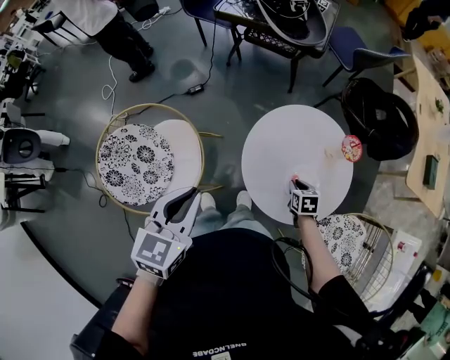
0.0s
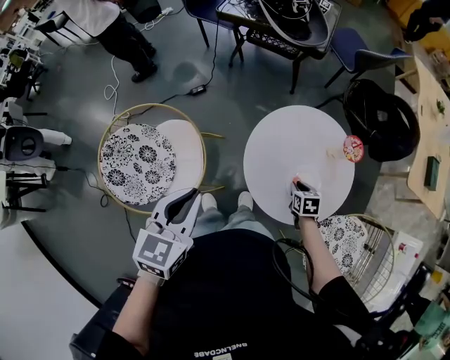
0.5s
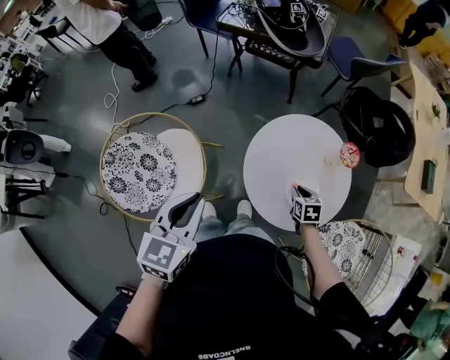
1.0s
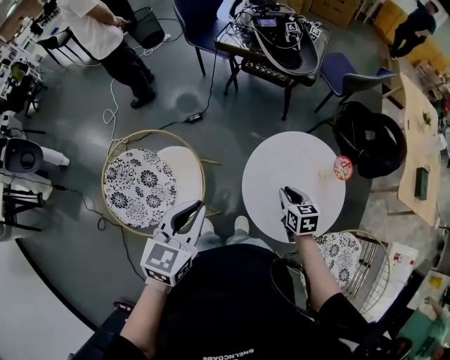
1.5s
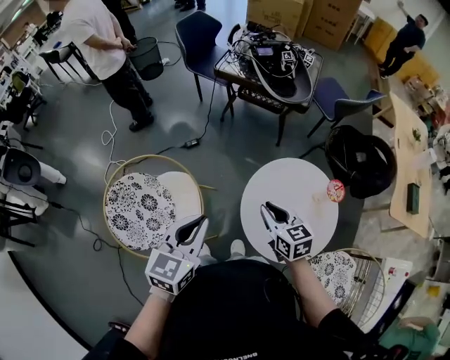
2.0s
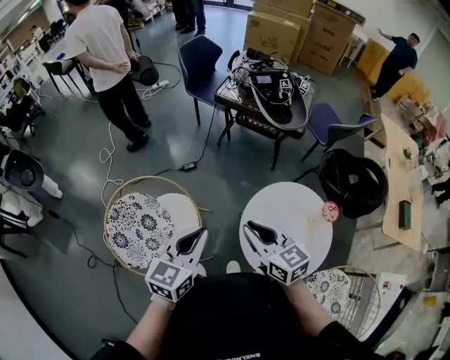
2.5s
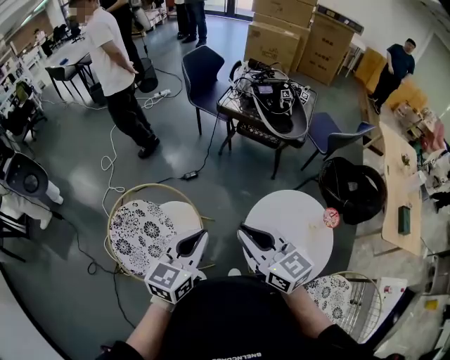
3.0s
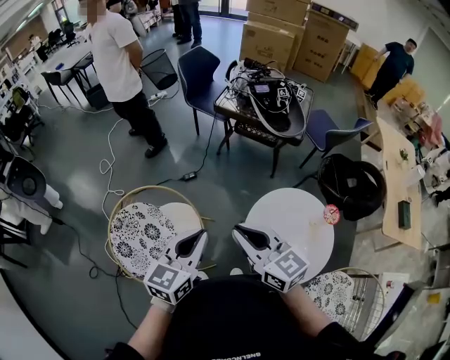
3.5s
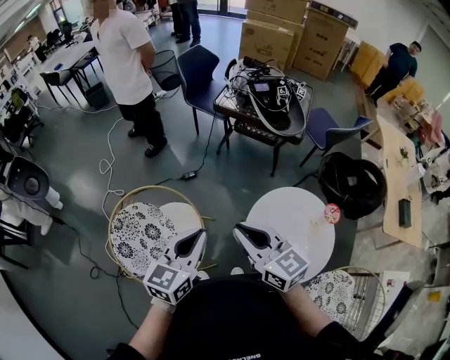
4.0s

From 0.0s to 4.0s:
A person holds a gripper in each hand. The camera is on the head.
From 0.0s to 2.0s: The right gripper travels upward and to the left by roughly 30 cm, and tilts its fingers some 30 degrees upward. Meanwhile the left gripper shifts by about 5 cm.
From 2.0s to 4.0s: The right gripper heads upward and to the left, covering roughly 20 cm, and swivels roughly 30 degrees, while the left gripper moves roughly 5 cm.

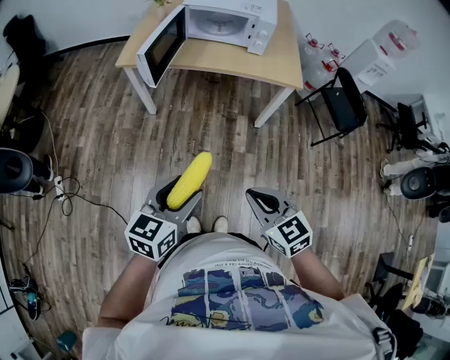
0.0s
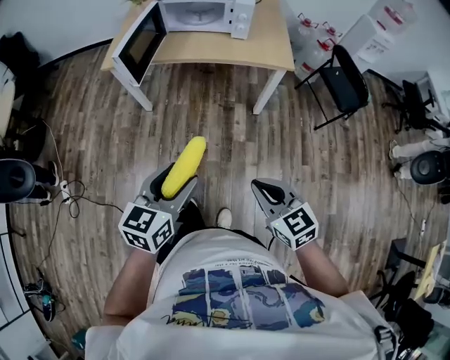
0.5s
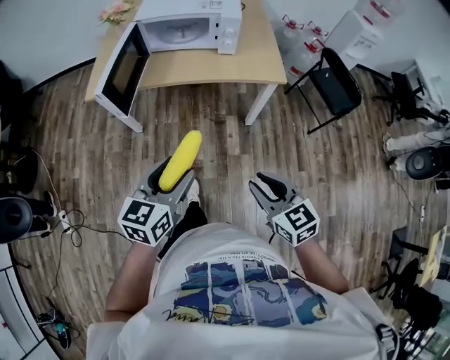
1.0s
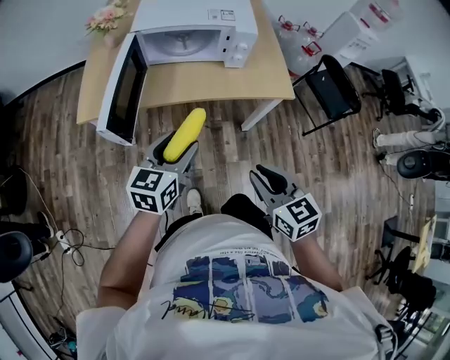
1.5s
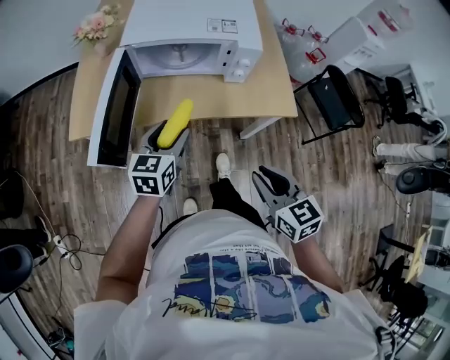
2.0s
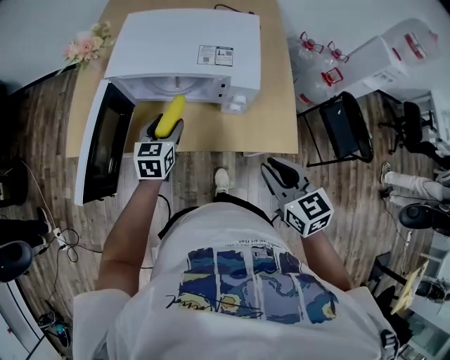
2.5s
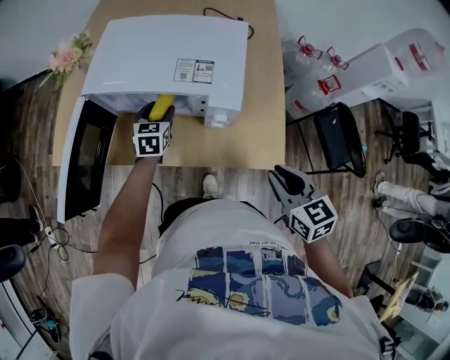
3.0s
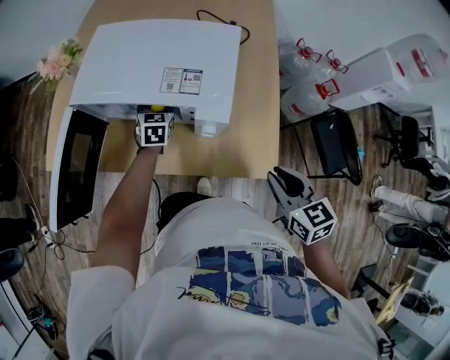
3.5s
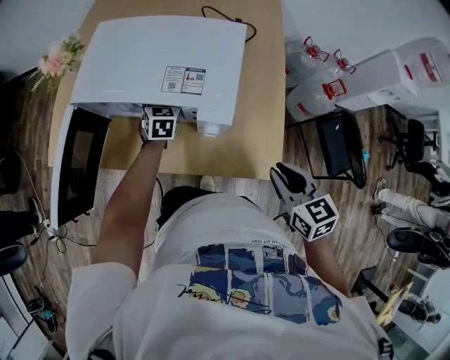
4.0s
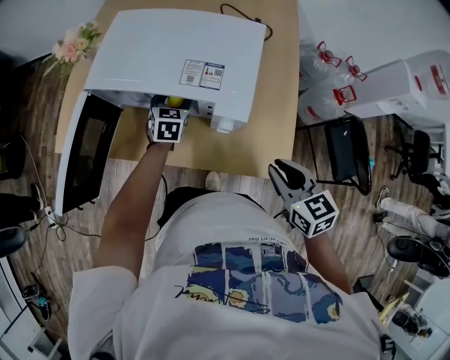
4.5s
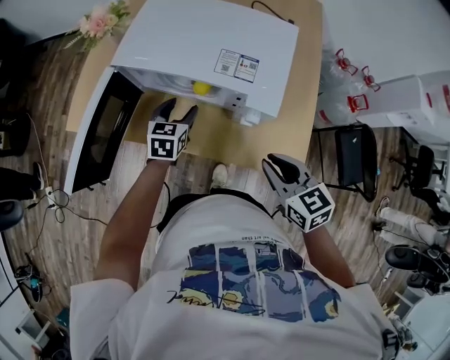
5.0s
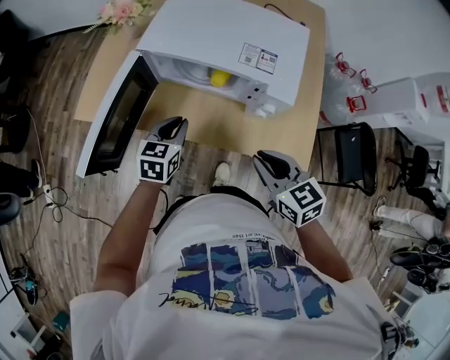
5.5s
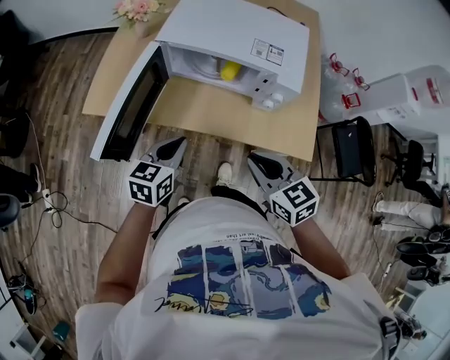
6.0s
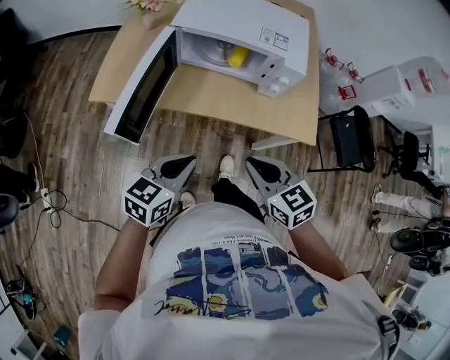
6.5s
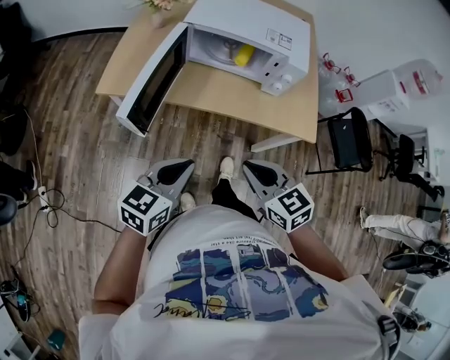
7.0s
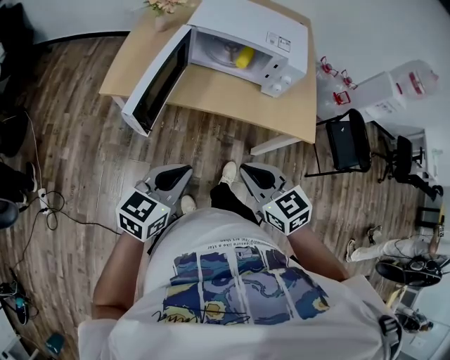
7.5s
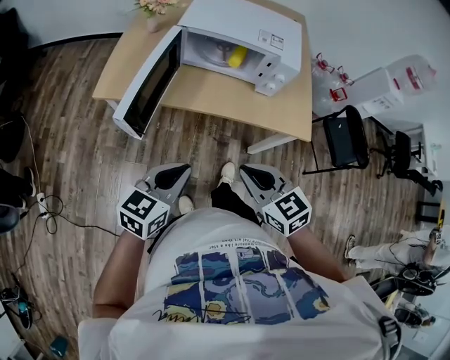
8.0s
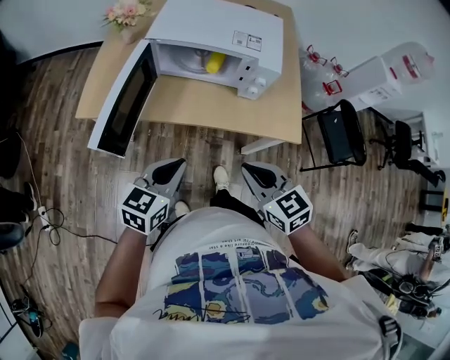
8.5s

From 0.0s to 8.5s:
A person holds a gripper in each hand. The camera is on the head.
From 0.0s to 2.0s: The two grippers go approximately 40 cm forward. The right gripper rotates roughly 20 degrees.
From 2.0s to 4.0s: The left gripper heads forward and to the right, covering some 35 cm, and swivels roughly 30 degrees; the right gripper shifts approximately 35 cm to the right and forward.
From 4.0s to 6.5s: The right gripper shifts some 35 cm to the left and backward, while the left gripper moves backward and to the left, roughly 50 cm, swivels about 40 degrees, and closes.
From 6.5s to 8.5s: The left gripper reaches about 10 cm backward, then returns.

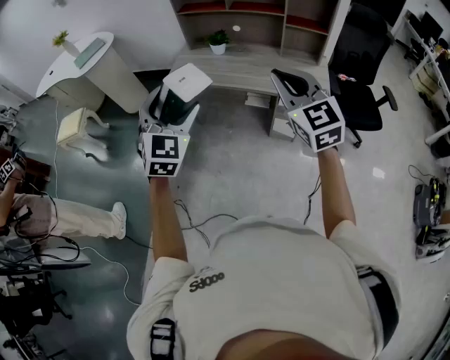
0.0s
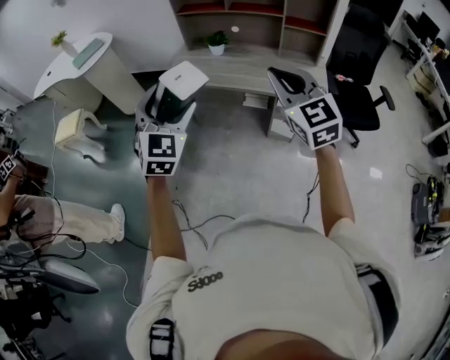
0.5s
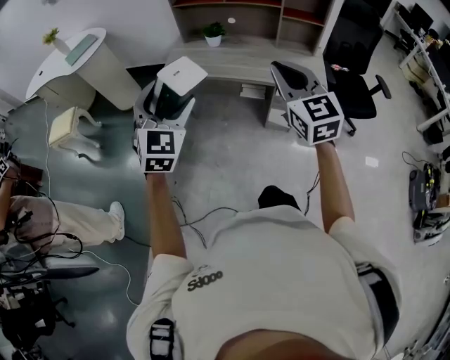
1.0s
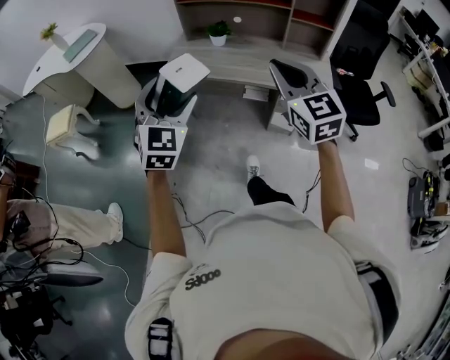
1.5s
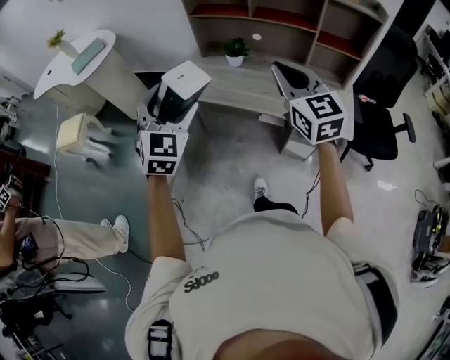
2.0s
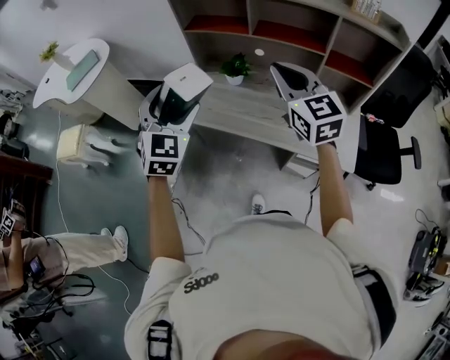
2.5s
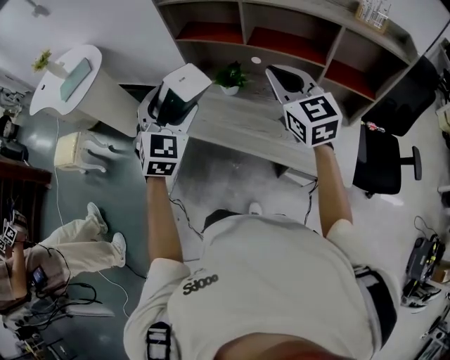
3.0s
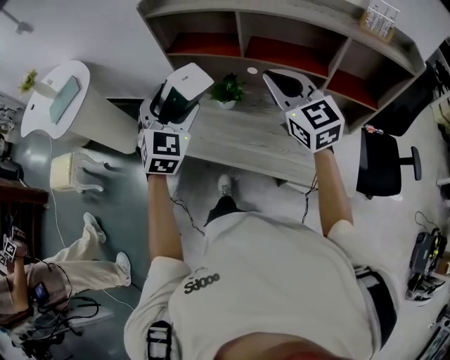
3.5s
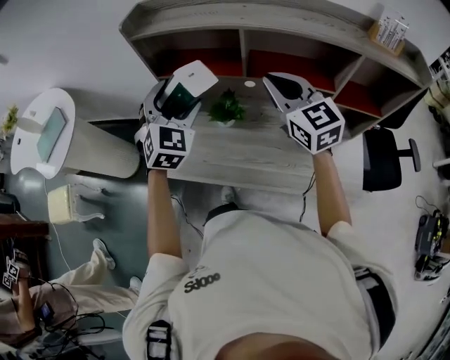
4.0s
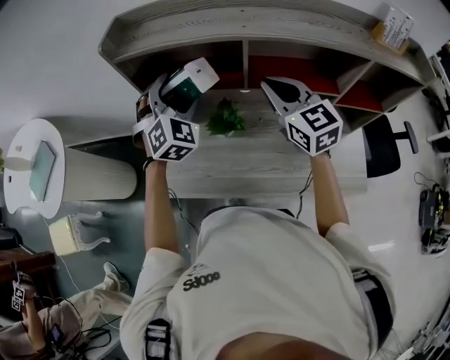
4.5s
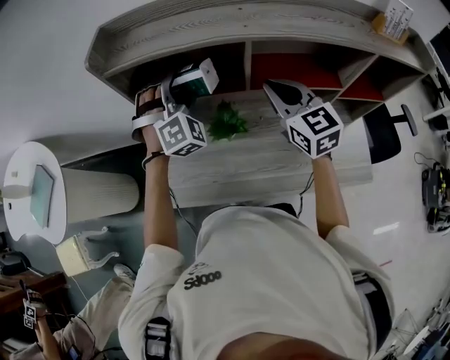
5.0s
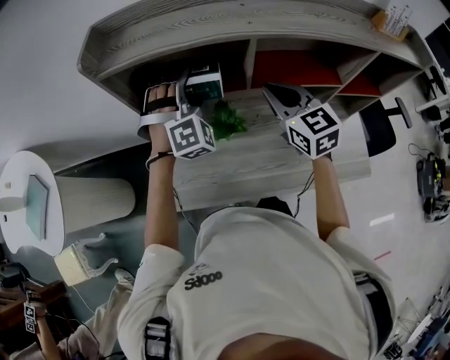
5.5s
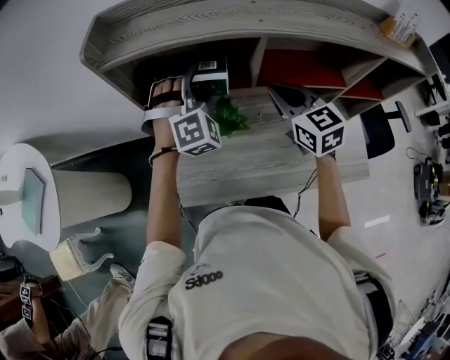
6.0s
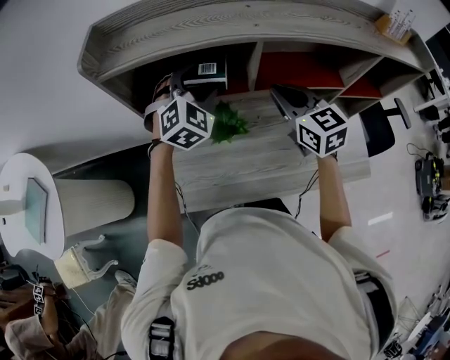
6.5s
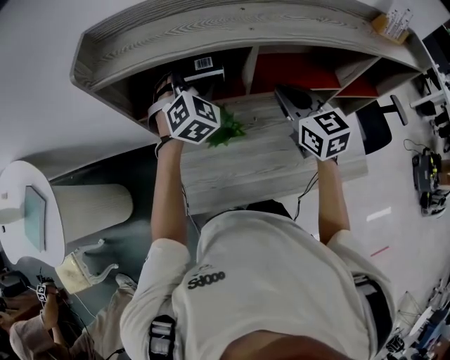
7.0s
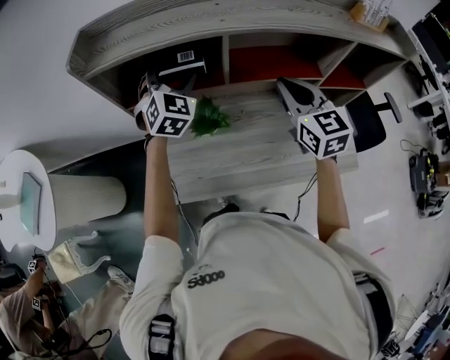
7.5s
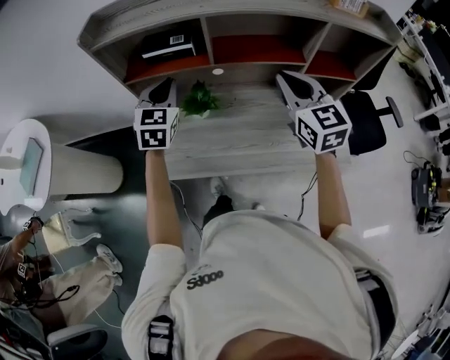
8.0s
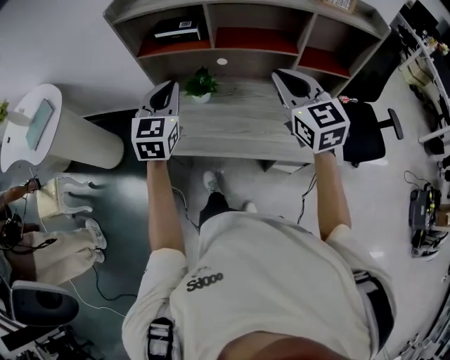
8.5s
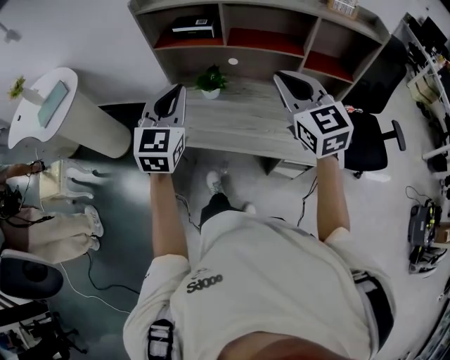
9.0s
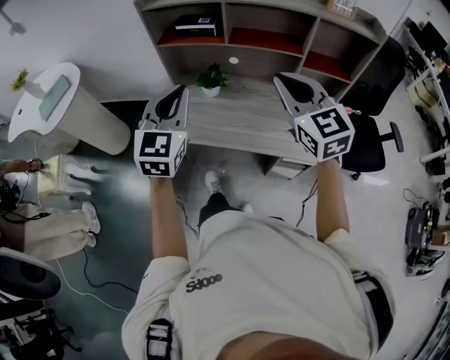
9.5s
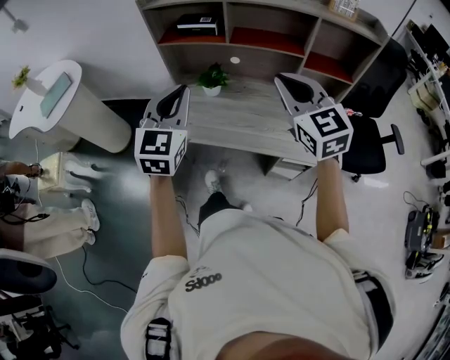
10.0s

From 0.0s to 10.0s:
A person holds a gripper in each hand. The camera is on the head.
From 0.0s to 2.0s: The grippers both shift forward by roughly 25 cm.
From 2.0s to 4.0s: Both grippers are carried forward, approximately 40 cm.
From 4.0s to 6.0s: The two grippers go some 15 cm forward and downward. The right gripper changes its angle by approximately 20 degrees. Meanwhile the left gripper changes its angle by some 40 degrees.
From 6.0s to 8.0s: The right gripper travels backward, to the right and upward by roughly 20 cm, while the left gripper shifts about 10 cm backward, rotates around the line of its fingers by approximately 60 degrees, counterclockwise from behind, and closes up.
From 8.0s to 10.0s: The left gripper heads backward, covering approximately 30 cm, while the right gripper travels backward by approximately 20 cm.

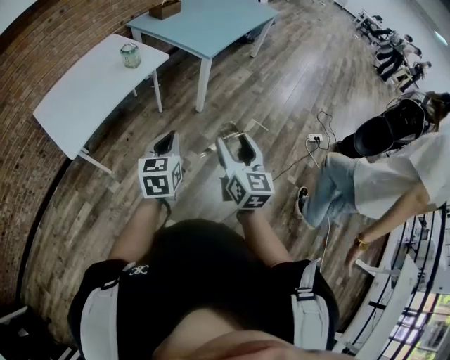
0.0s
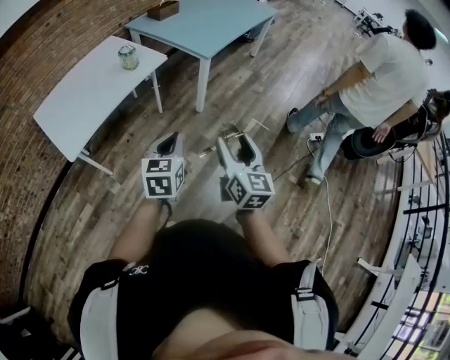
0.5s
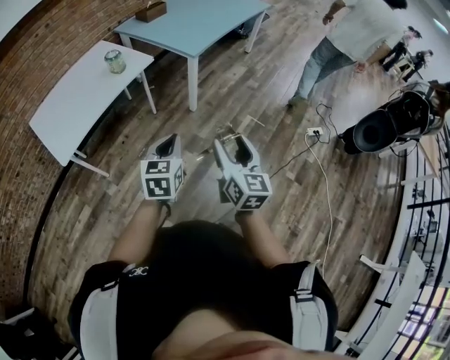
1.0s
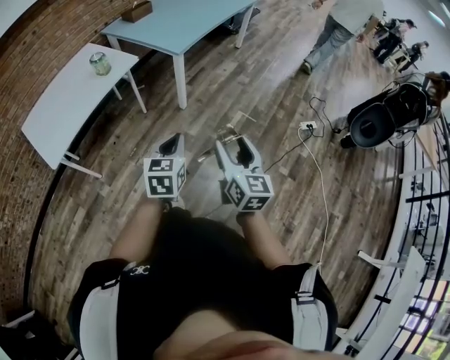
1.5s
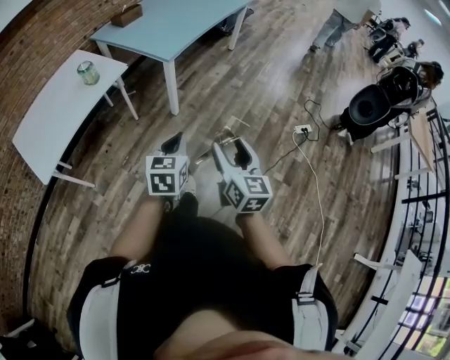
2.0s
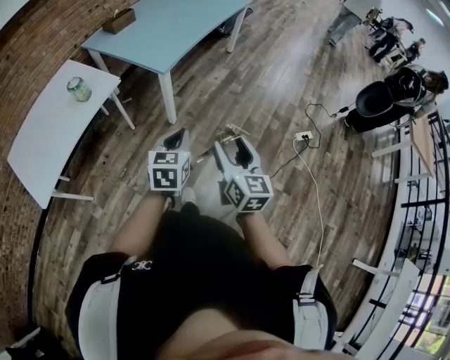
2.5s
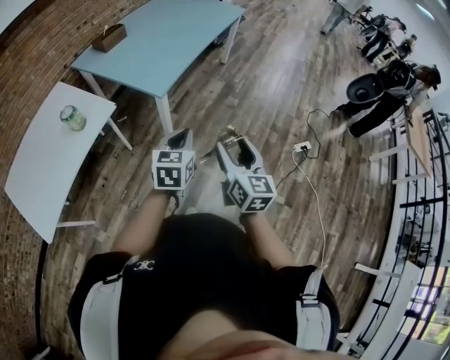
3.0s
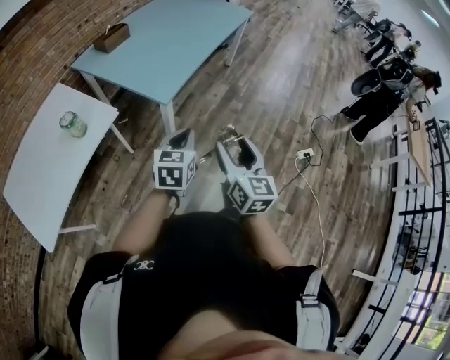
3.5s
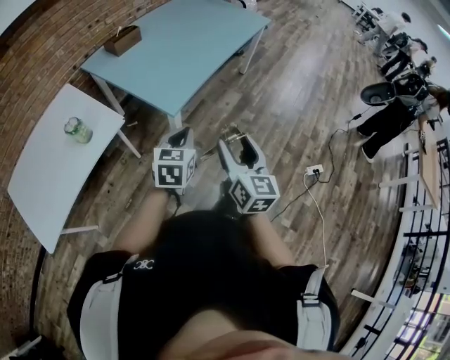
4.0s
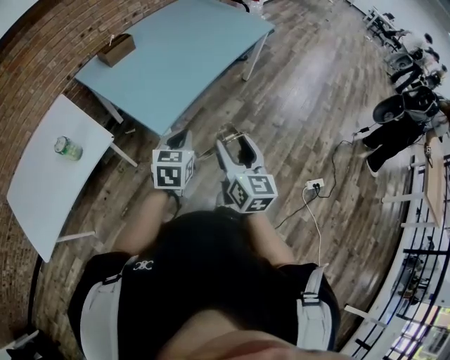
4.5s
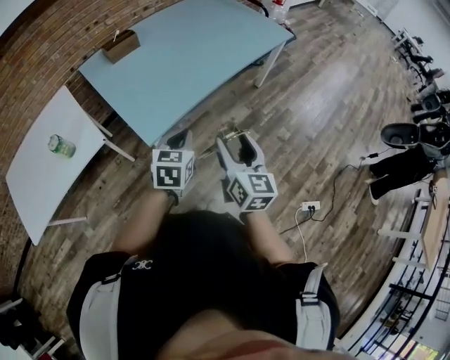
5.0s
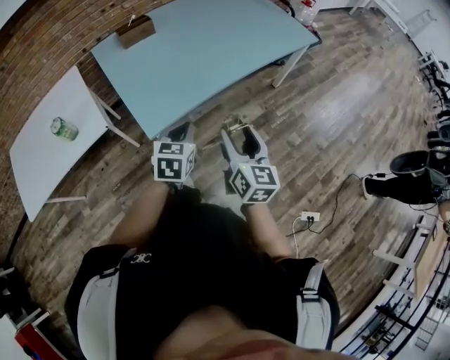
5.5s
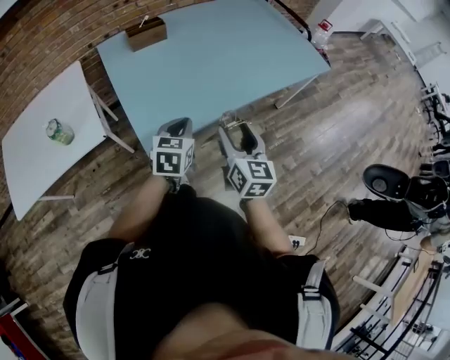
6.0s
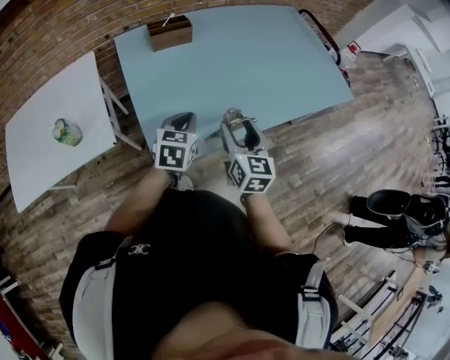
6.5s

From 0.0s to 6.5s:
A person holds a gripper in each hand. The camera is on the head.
From 0.0s to 2.0s: Both grippers move to the right, about 20 cm.
From 2.0s to 4.5s: Both grippers are carried forward, roughly 40 cm.
From 4.5s to 6.5s: Both grippers move forward, some 30 cm. The right gripper swivels roughly 30 degrees, while the left gripper rotates approximately 30 degrees.
